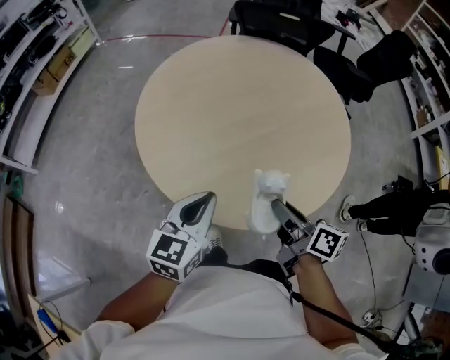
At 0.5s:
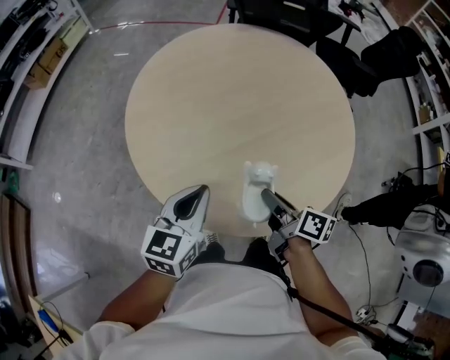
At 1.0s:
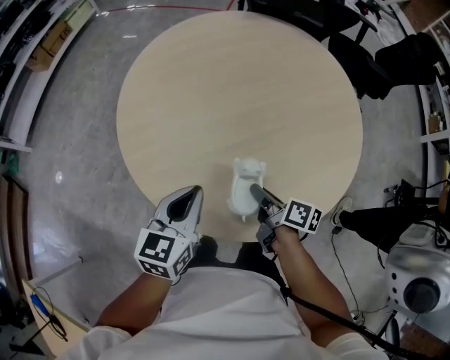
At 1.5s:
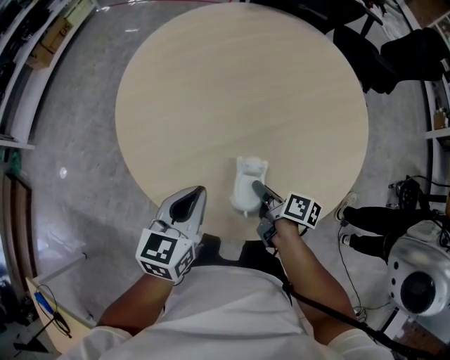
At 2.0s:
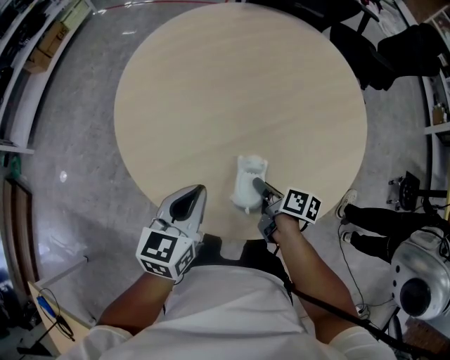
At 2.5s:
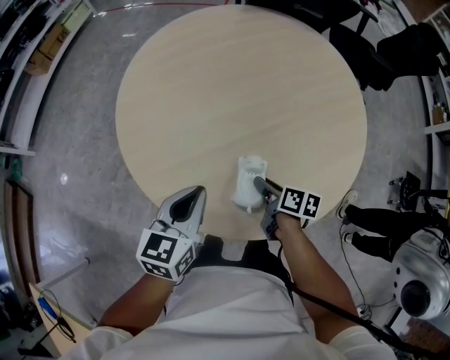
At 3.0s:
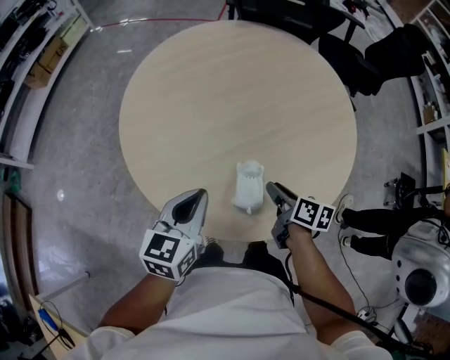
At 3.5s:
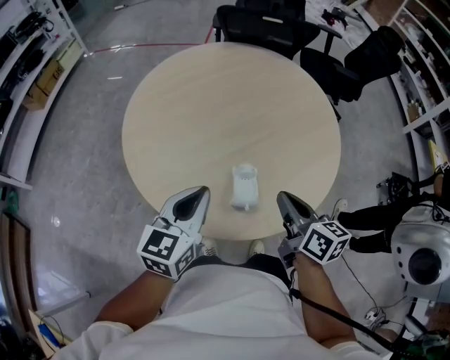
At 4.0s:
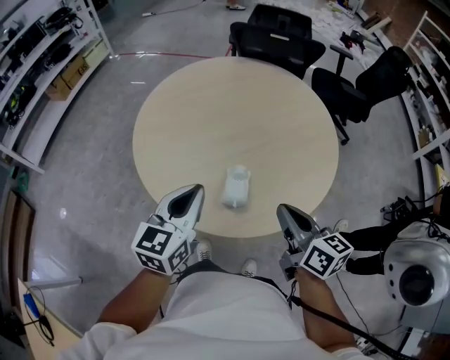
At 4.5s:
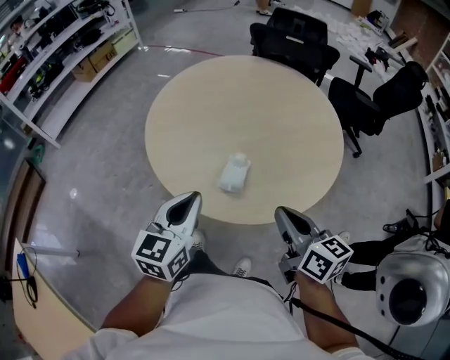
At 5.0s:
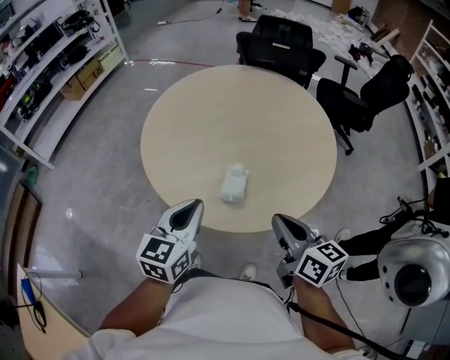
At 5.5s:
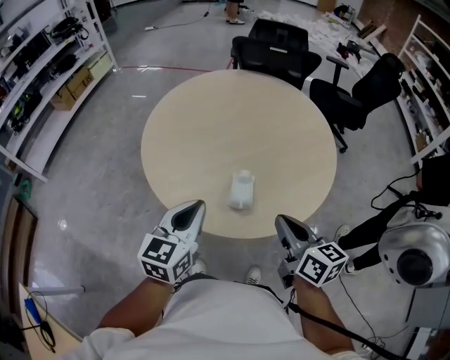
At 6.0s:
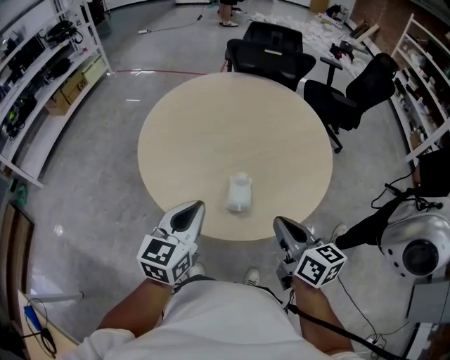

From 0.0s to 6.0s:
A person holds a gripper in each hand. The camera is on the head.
From 0.0s to 2.0s: The left gripper is displaced downward and forward by approximately 5 cm, while the right gripper heads downward and forward, covering approximately 20 cm, and swivels roughly 20 degrees.
From 2.0s to 4.0s: The right gripper moves upward, approximately 25 cm, turns by approximately 40 degrees, and closes; the left gripper moves upward, approximately 10 cm.

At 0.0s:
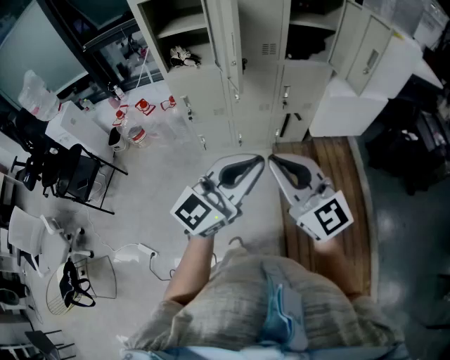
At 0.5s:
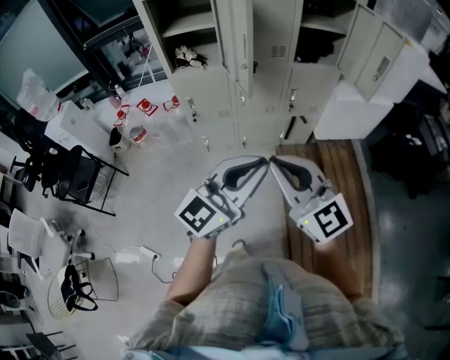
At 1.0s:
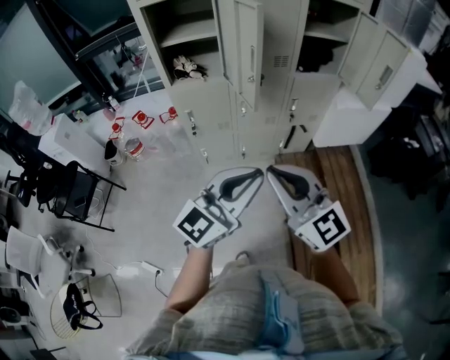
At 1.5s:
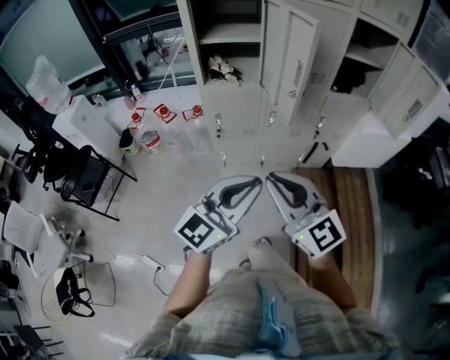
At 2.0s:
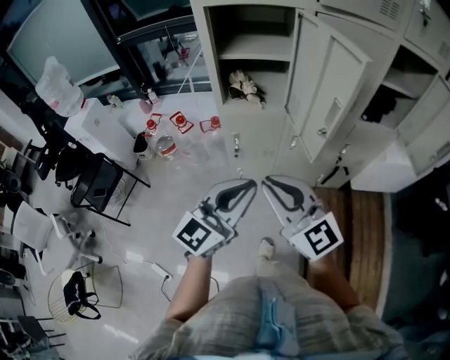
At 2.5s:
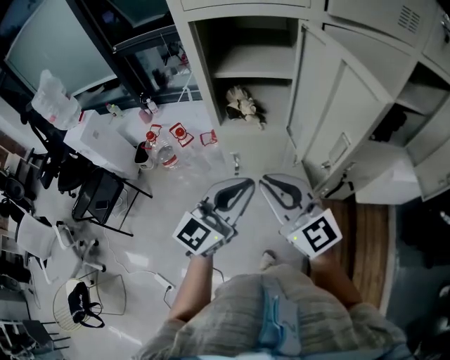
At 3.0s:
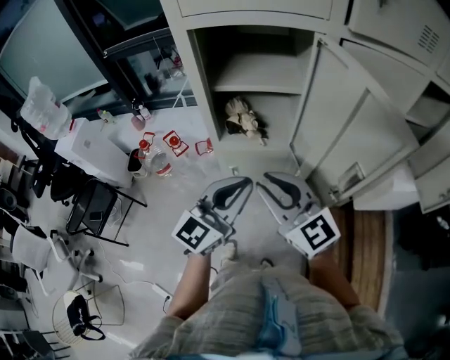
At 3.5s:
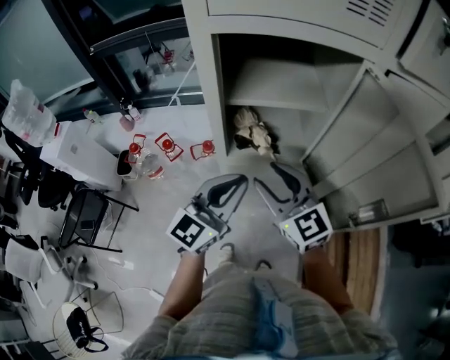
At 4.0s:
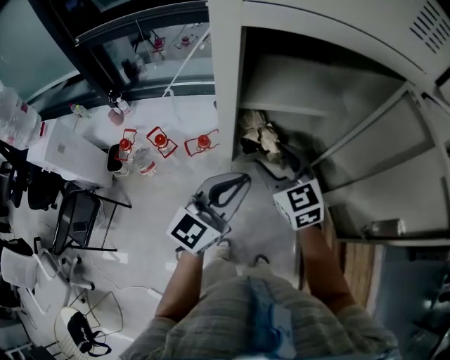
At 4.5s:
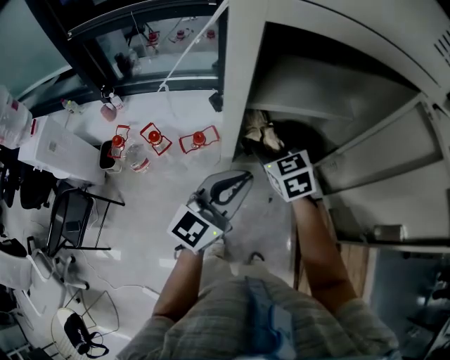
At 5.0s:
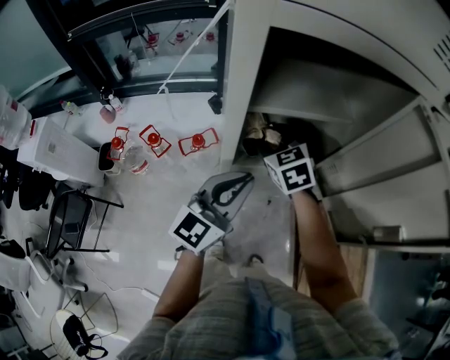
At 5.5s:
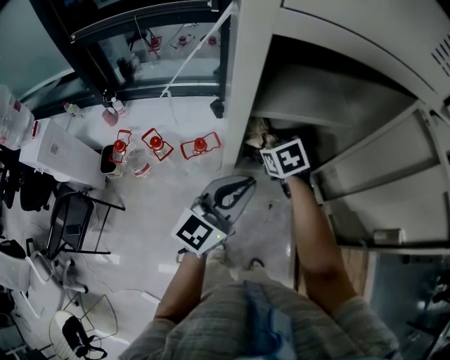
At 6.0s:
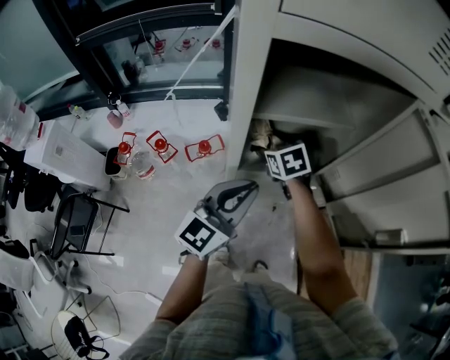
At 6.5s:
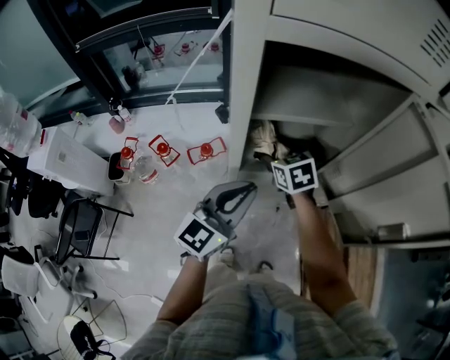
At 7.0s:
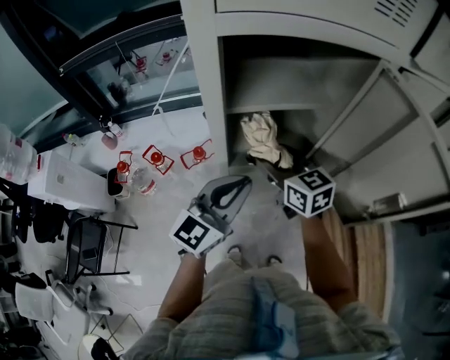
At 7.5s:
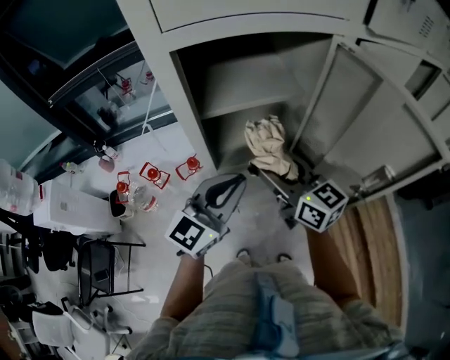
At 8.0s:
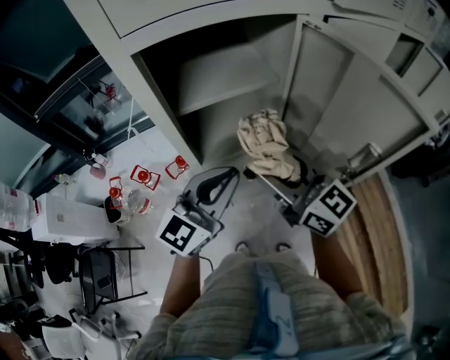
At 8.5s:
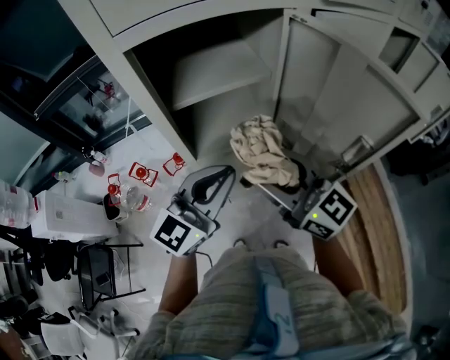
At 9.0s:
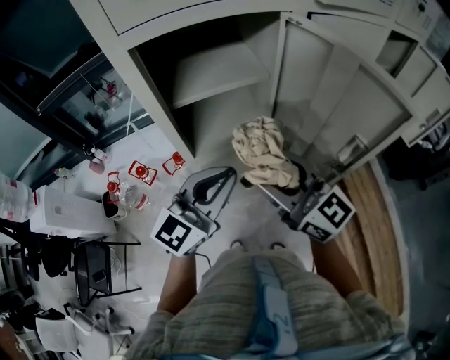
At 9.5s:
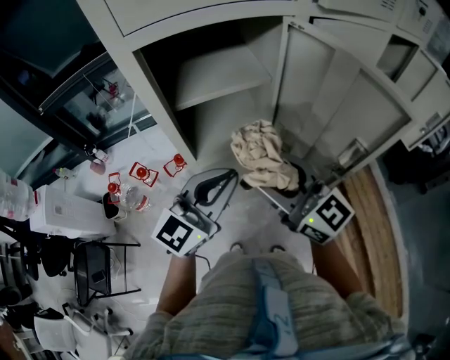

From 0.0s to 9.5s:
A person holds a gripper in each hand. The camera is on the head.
From 0.0s to 2.0s: The grippers both shift to the left and forward by about 30 cm.
From 2.0s to 4.0s: Both grippers travel together forward, roughly 35 cm. The right gripper rotates about 30 degrees, and opens up.
From 4.0s to 5.5s: The right gripper is displaced forward and downward by about 15 cm, and rotates some 30 degrees.
From 5.5s to 7.5s: The right gripper heads upward, backward and to the right, covering roughly 20 cm, and tips its fingers upward by approximately 50 degrees. The left gripper moves some 5 cm.
From 7.5s to 9.5s: The right gripper goes approximately 10 cm backward and upward. Meanwhile the left gripper changes place by roughly 5 cm.

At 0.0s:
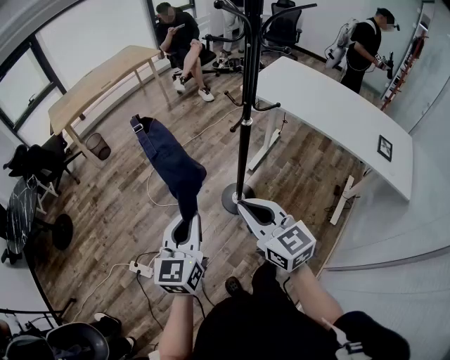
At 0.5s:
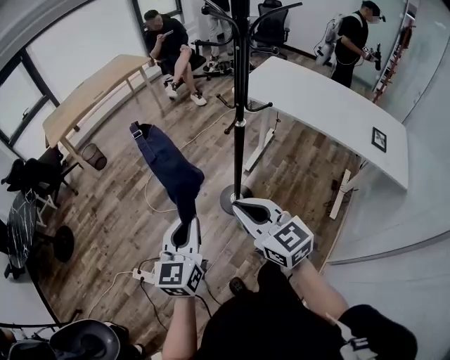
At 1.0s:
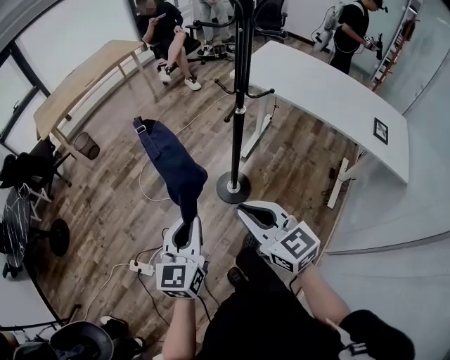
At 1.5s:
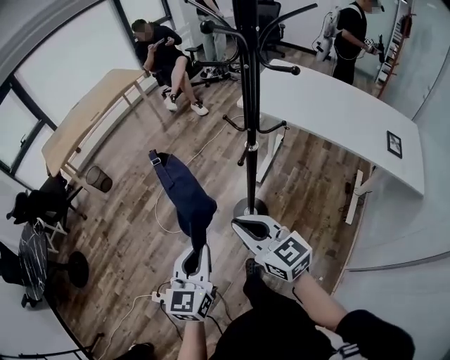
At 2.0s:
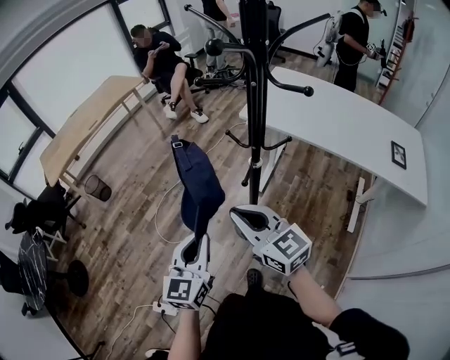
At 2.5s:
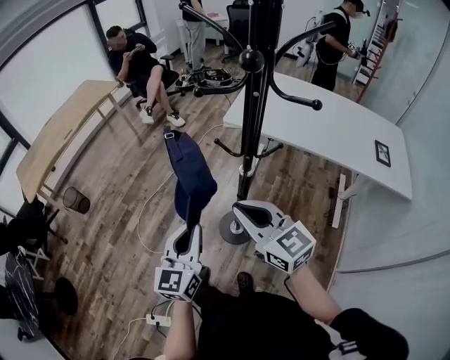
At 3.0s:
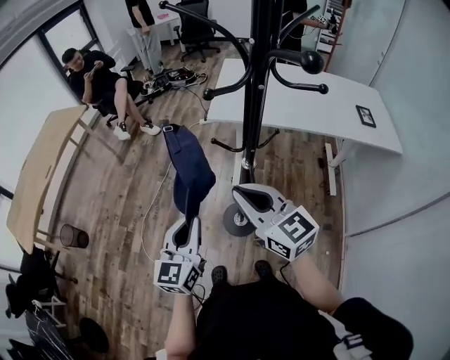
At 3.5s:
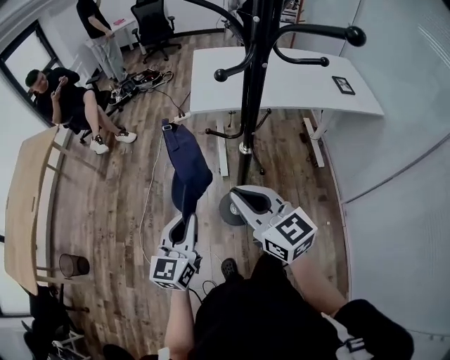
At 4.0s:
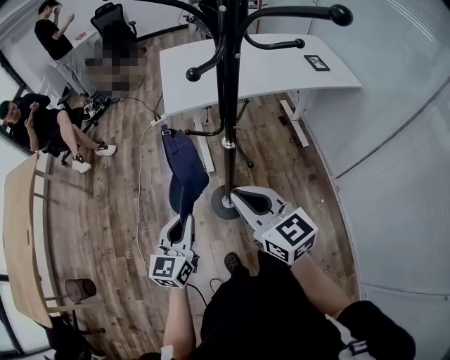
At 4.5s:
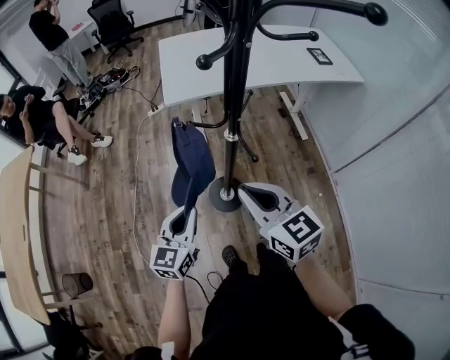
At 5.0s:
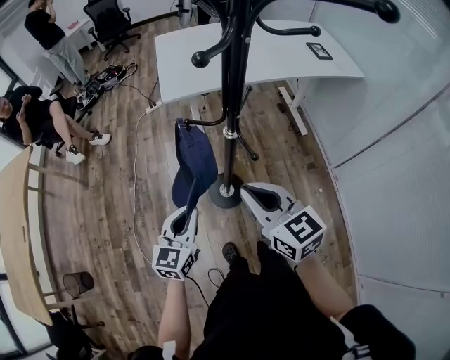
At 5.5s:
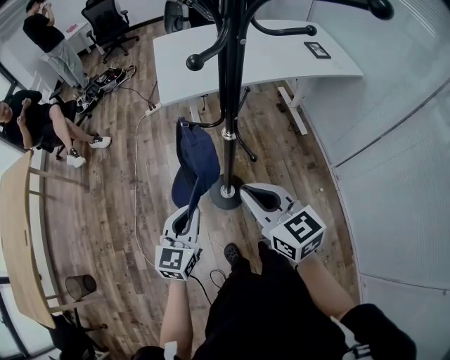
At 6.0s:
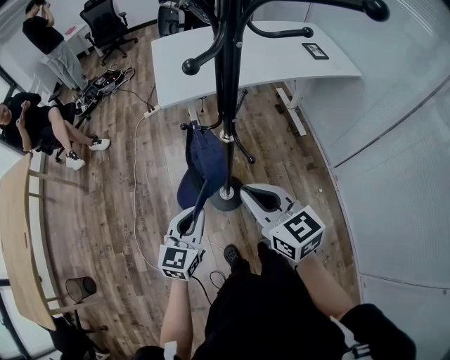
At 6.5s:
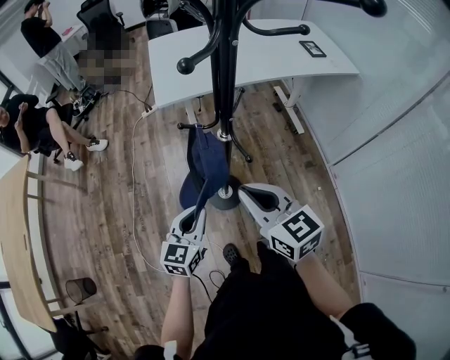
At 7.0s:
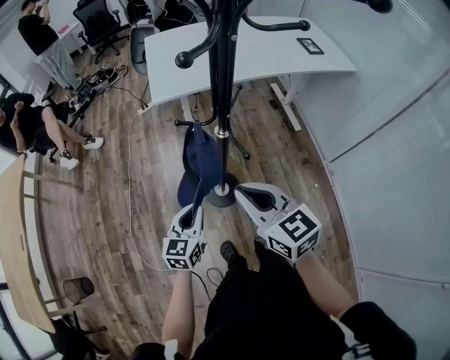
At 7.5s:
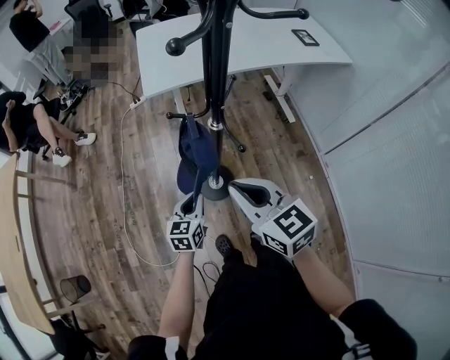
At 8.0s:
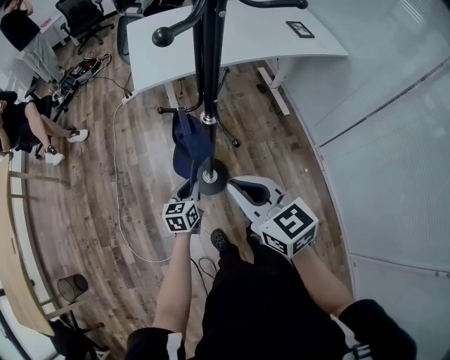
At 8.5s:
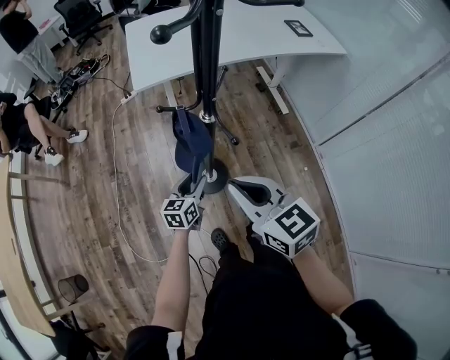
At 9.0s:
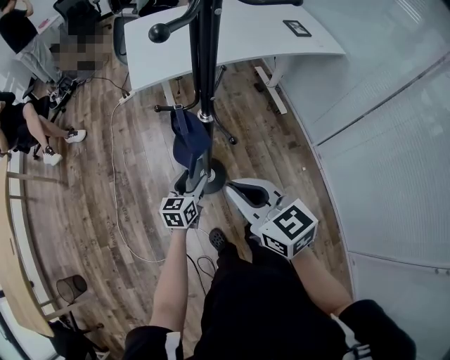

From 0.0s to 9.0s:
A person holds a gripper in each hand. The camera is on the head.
From 0.0s to 2.0s: Both grippers move forward, approximately 15 cm.
From 2.0s to 4.5s: The right gripper ends up about 10 cm from where it was, and turns by about 50 degrees. Meanwhile the left gripper moves some 20 cm, and changes its angle by some 50 degrees.
From 4.5s to 7.0s: The left gripper heads downward, covering some 10 cm.
From 7.0s to 9.0s: The left gripper heads downward, forward and to the right, covering some 10 cm, and opens up.

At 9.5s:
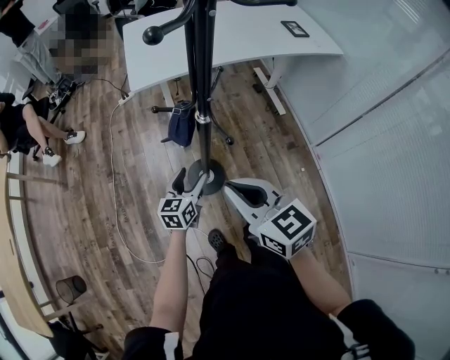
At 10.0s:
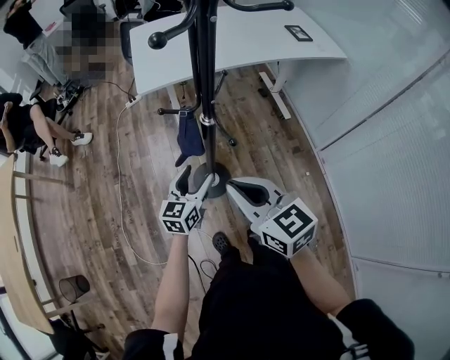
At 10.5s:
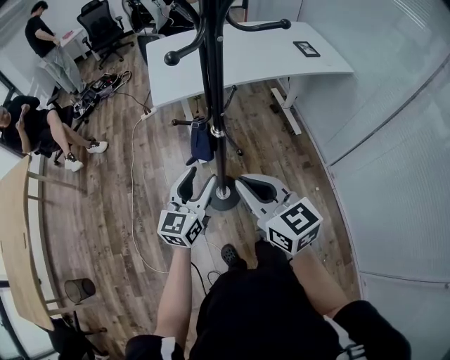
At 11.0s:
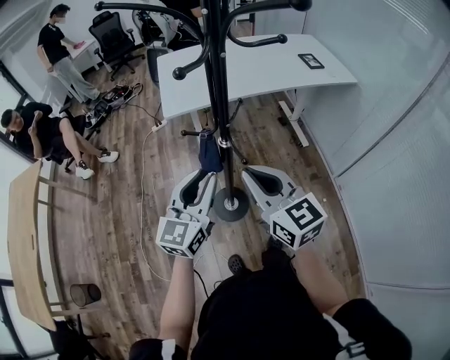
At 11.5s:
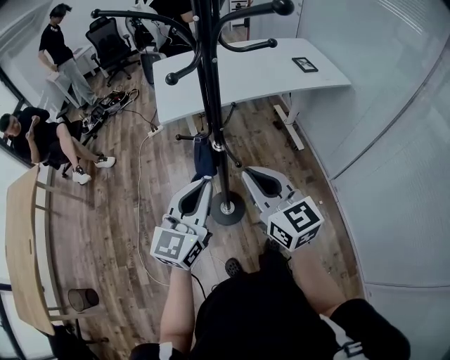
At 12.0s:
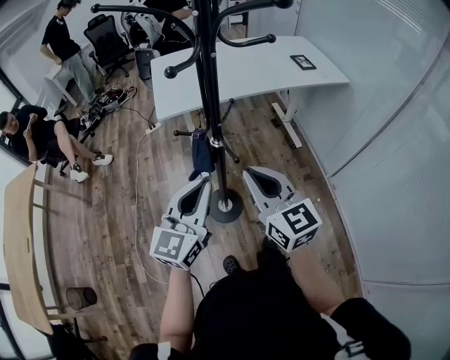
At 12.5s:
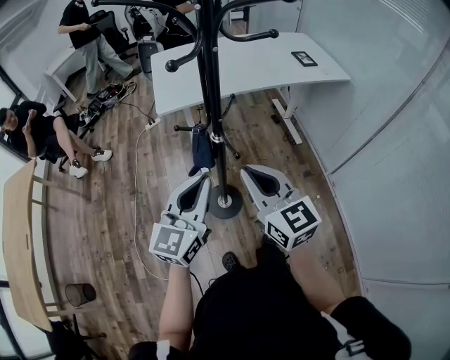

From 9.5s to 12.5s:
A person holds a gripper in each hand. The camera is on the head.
From 9.5s to 11.0s: The right gripper moves upward, roughly 5 cm. The left gripper moves upward, roughly 25 cm, swivels some 30 degrees, and closes.
From 11.0s to 12.5s: There are only small adjustments of the grippers.
